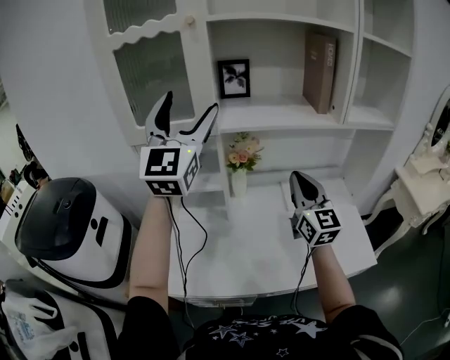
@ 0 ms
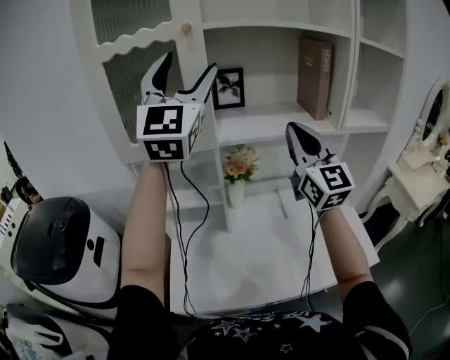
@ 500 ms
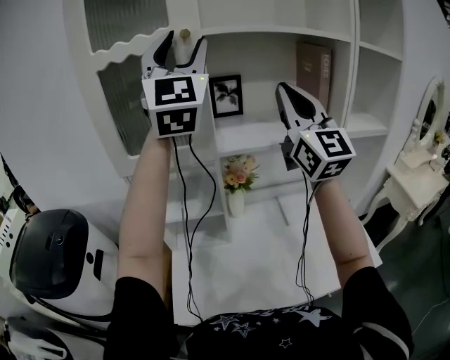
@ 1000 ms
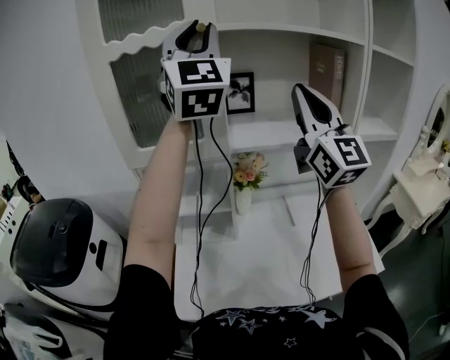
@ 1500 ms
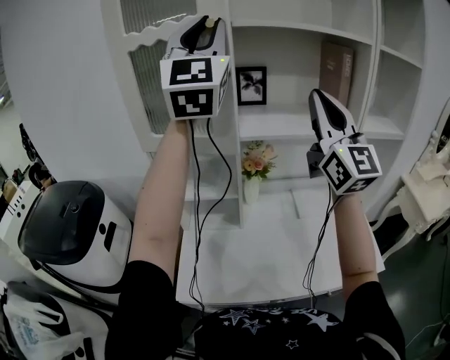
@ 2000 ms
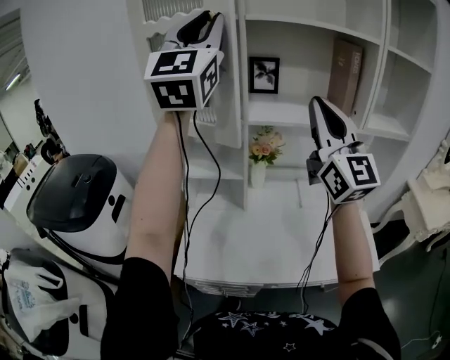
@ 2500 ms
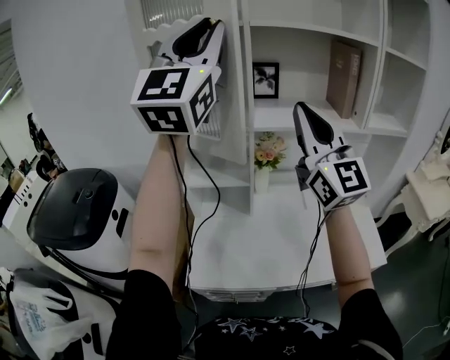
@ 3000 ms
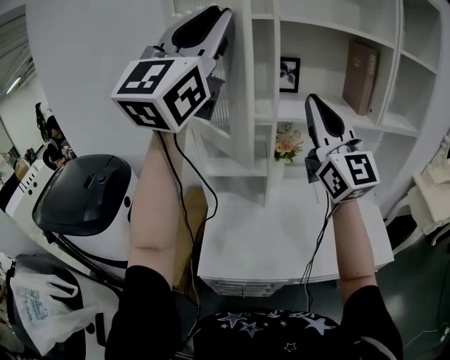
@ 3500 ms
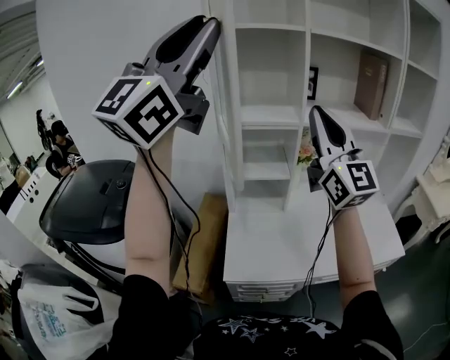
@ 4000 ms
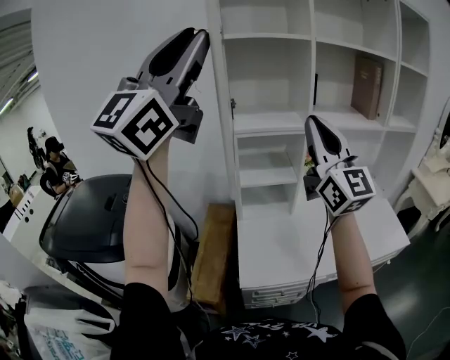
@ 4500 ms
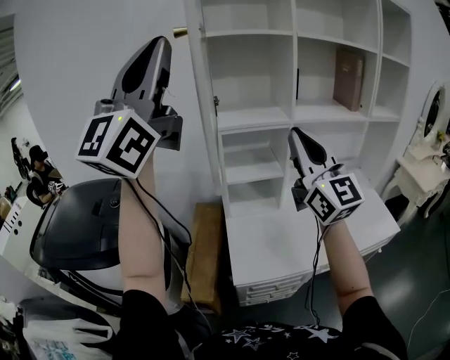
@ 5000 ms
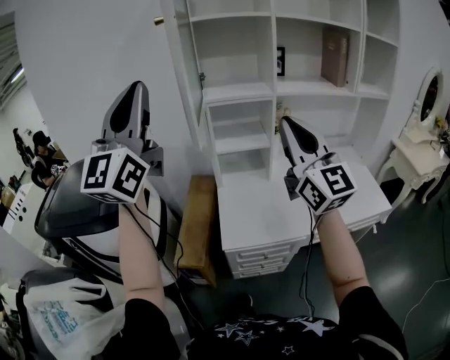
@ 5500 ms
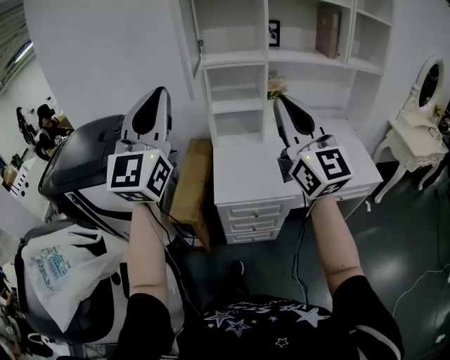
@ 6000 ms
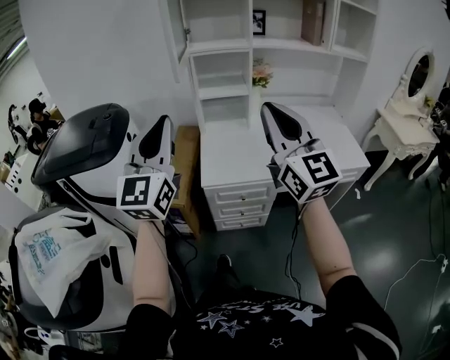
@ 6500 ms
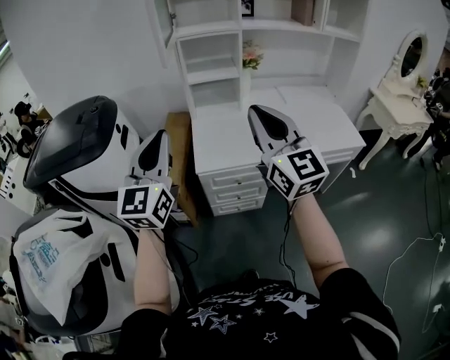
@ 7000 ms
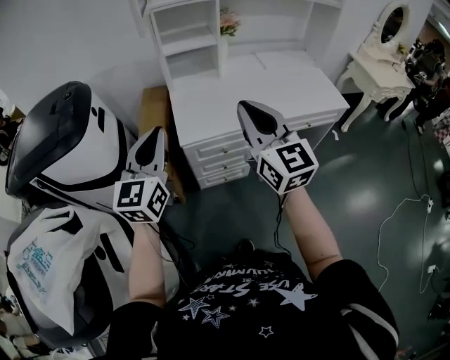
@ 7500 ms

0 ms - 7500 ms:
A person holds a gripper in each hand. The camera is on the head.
0 ms - 2000 ms: Both grippers travel together upward, approximately 20 cm. The left gripper closes its fingers. The right gripper turns by about 20 degrees.
2000 ms - 4000 ms: The left gripper goes roughly 30 cm backward and to the left, and swivels about 30 degrees. The right gripper goes approximately 25 cm to the left and backward.
4000 ms - 5500 ms: The left gripper moves downward, backward and to the left, about 20 cm; the right gripper shifts some 15 cm backward and downward.
5500 ms - 7500 ms: The left gripper moves downward and backward, roughly 35 cm, and tilts its fingers some 30 degrees downward; the right gripper heads backward and downward, covering some 25 cm.

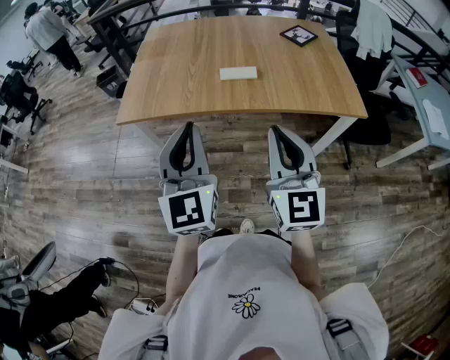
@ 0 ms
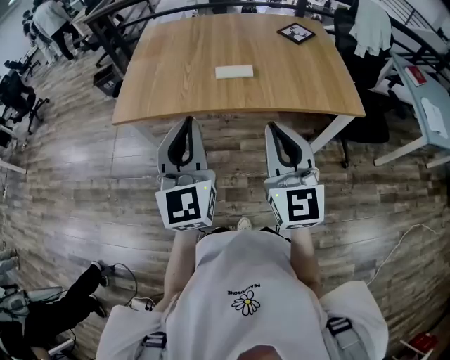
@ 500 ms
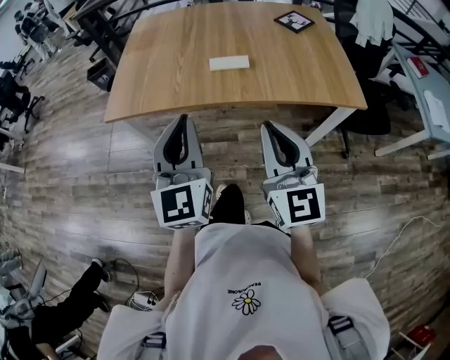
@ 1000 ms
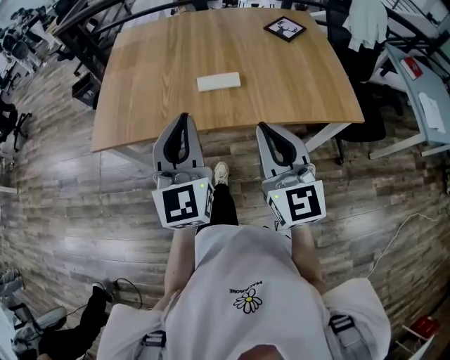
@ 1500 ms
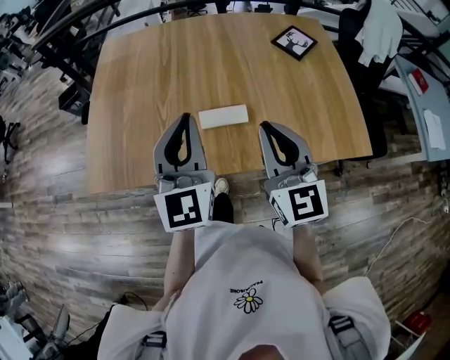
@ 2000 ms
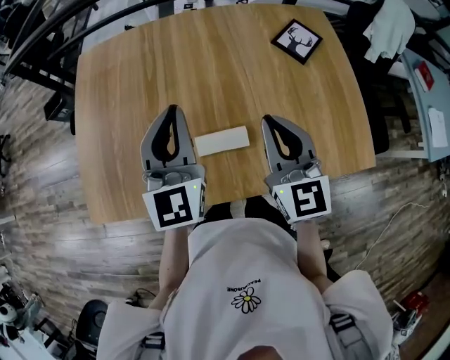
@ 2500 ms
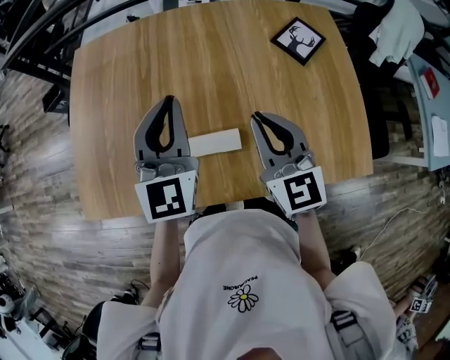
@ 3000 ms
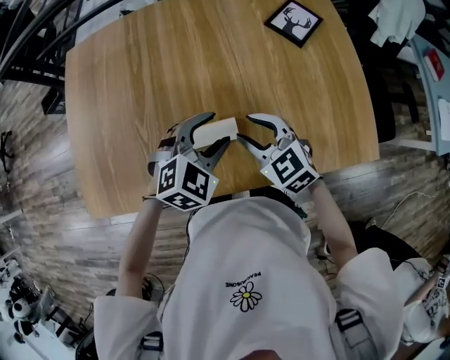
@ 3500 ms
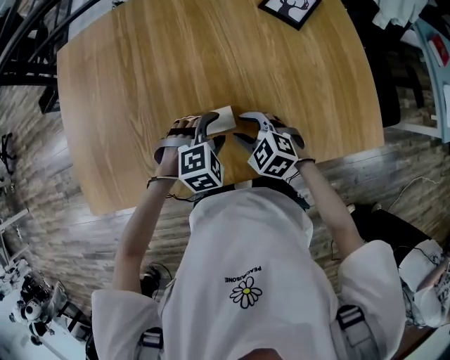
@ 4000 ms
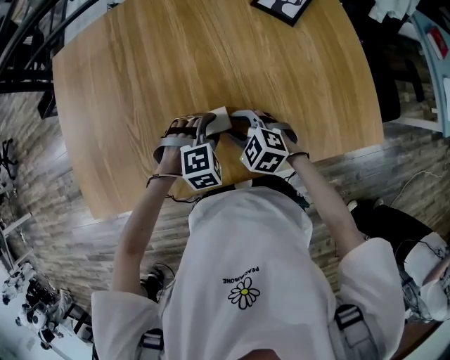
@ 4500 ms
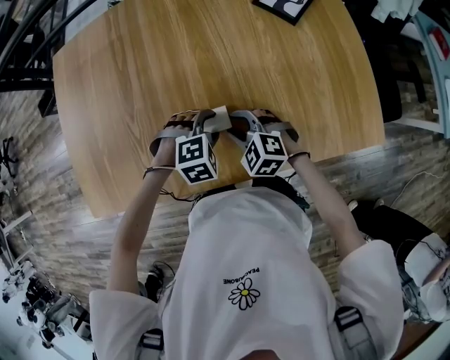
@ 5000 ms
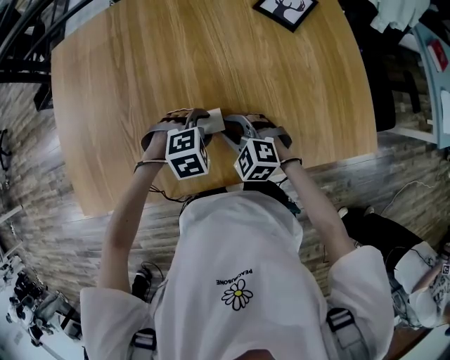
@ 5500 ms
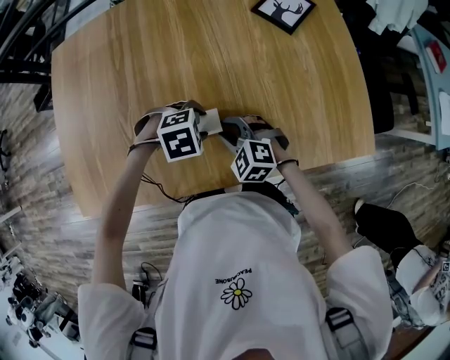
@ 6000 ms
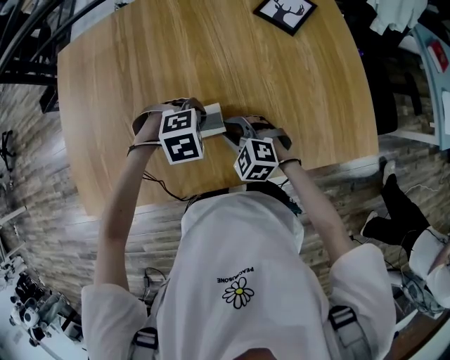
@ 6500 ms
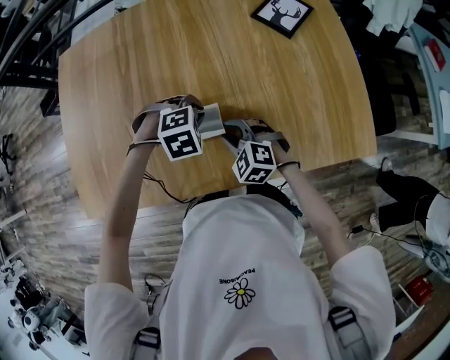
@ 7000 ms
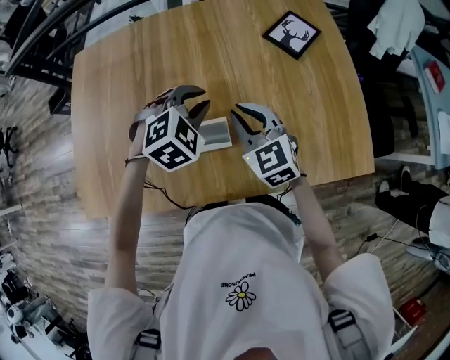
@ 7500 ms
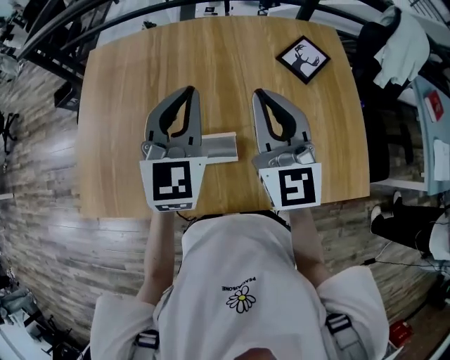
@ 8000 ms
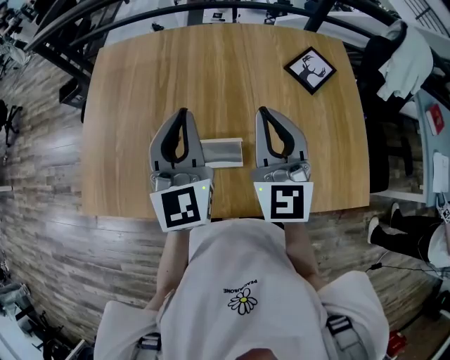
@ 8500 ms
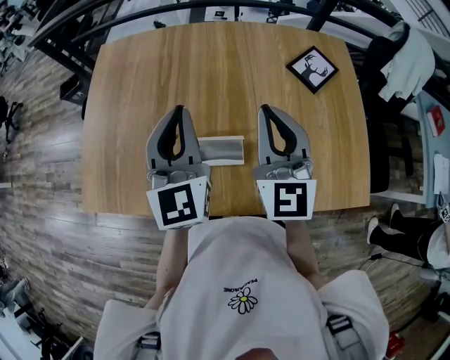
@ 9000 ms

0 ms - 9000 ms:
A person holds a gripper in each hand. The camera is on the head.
0 ms - 2000 ms: The two grippers go roughly 30 cm forward.
2000 ms - 4500 ms: The left gripper is displaced downward and to the right by some 35 cm, tilts its fingers some 70 degrees downward, and opens. Meanwhile the right gripper travels downward by about 30 cm, angles its fingers downward, by about 50 degrees, and opens.
4500 ms - 7000 ms: The left gripper changes place by about 5 cm, and closes up.
7000 ms - 9000 ms: The two grippers go about 30 cm upward. The left gripper angles its fingers upward, by some 70 degrees. The right gripper angles its fingers upward, by roughly 50 degrees, and closes its fingers.

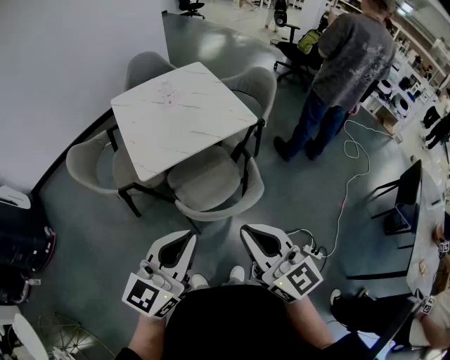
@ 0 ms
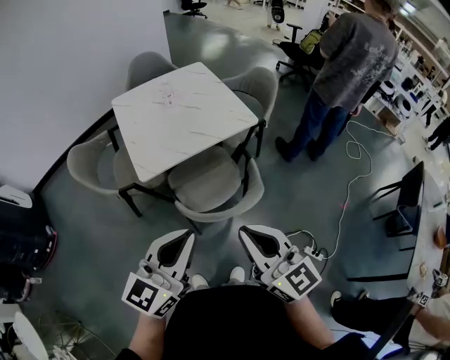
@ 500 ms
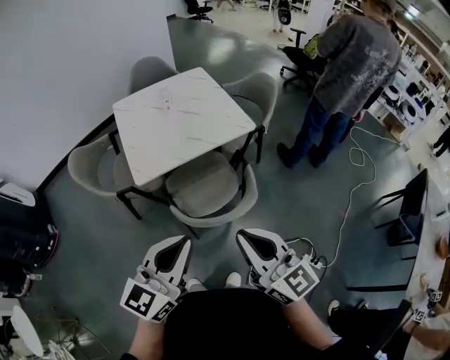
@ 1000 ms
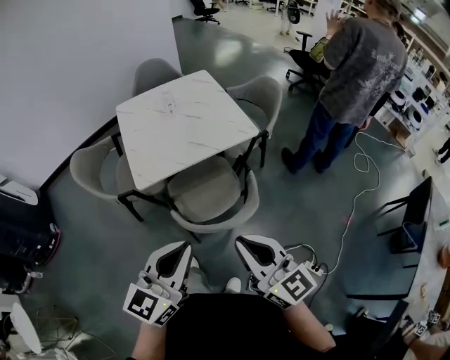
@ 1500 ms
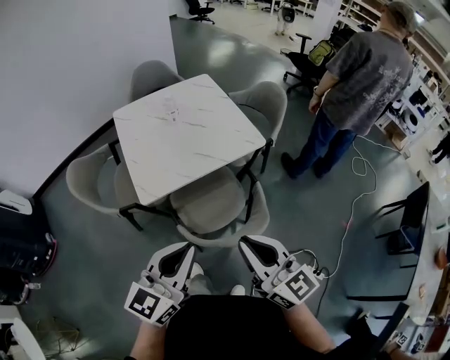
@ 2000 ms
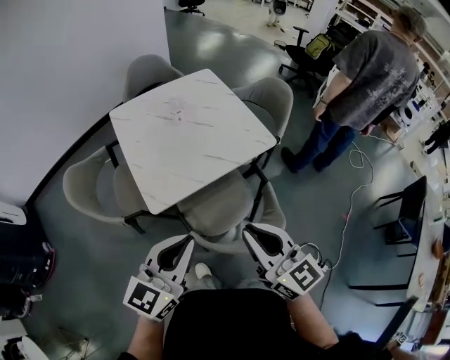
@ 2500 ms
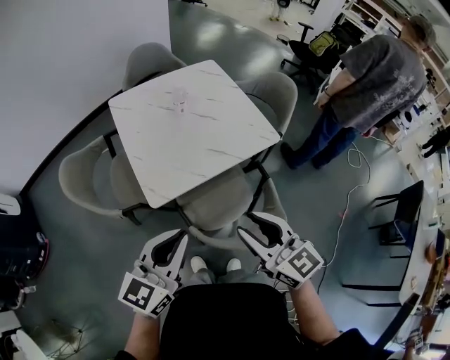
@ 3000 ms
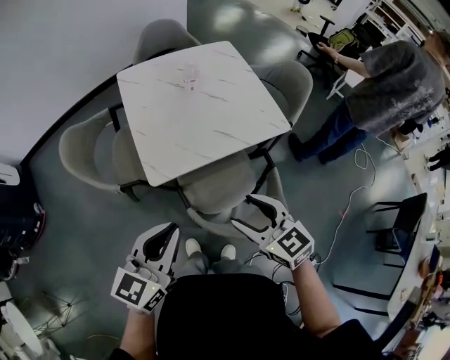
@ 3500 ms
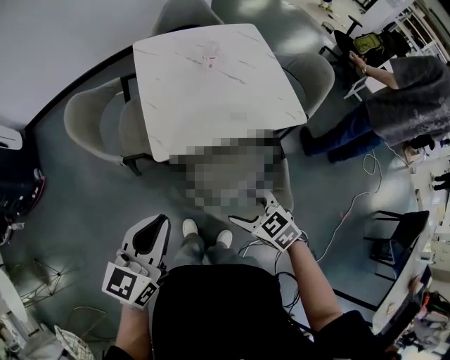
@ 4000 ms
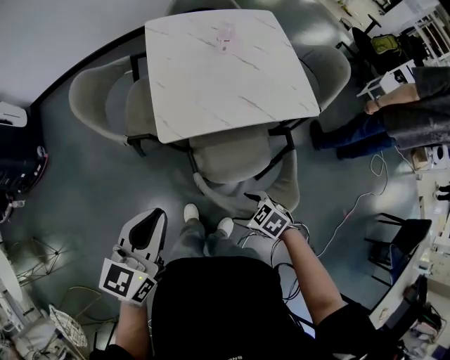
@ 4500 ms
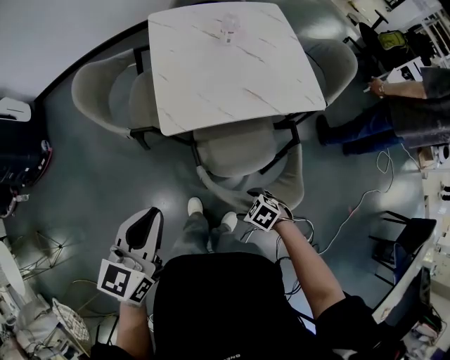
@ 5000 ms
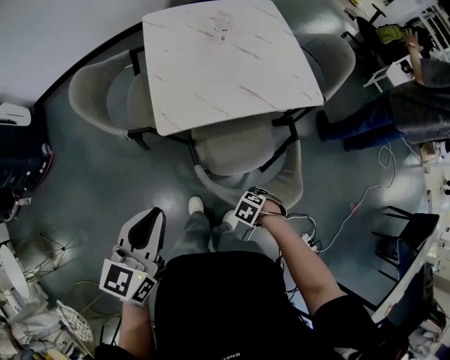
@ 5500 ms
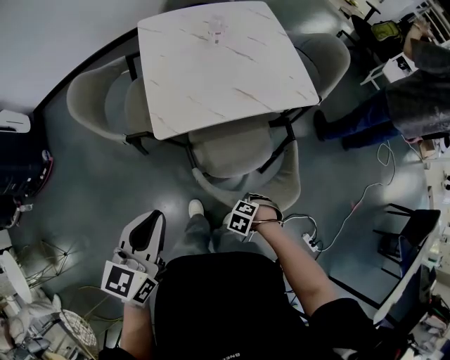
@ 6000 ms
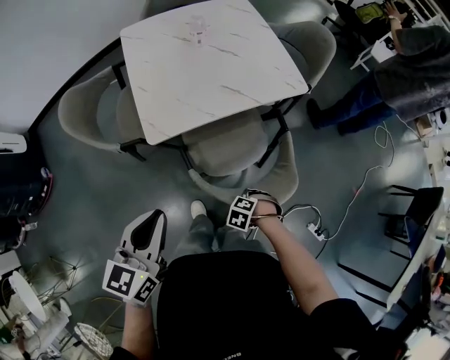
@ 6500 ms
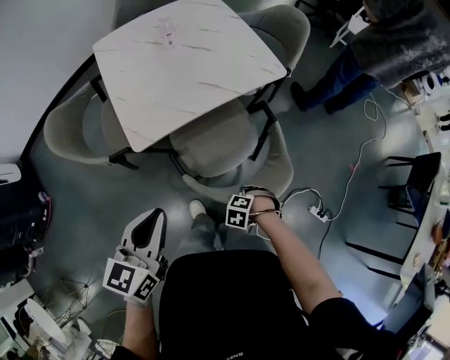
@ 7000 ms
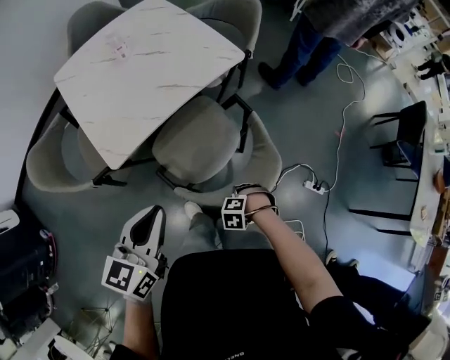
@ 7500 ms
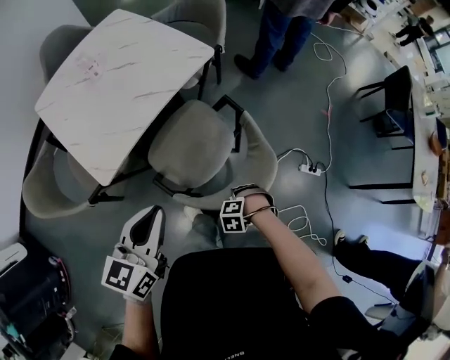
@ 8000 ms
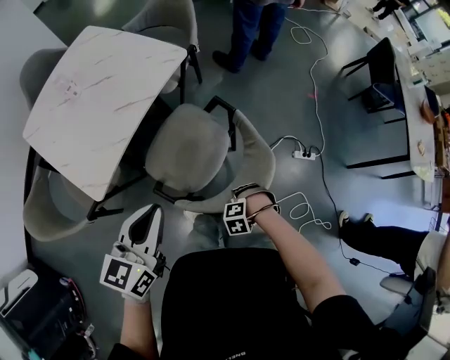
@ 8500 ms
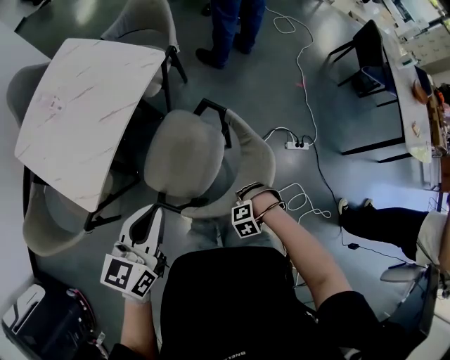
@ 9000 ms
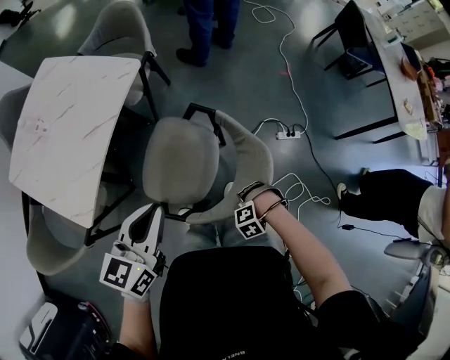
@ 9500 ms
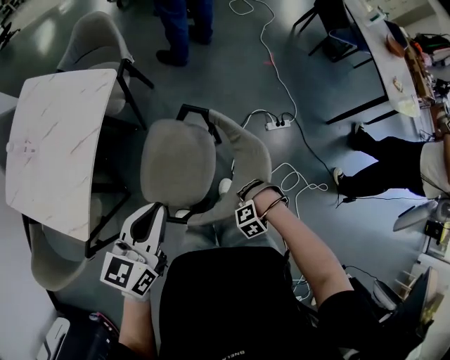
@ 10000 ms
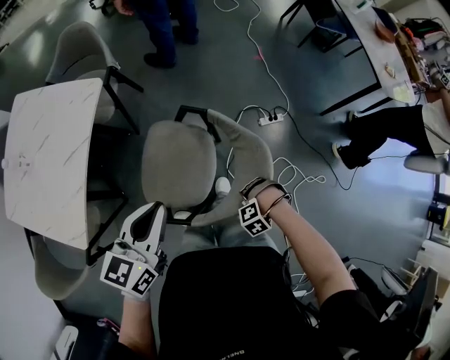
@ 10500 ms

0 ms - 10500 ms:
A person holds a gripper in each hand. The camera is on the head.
0 ms - 2000 ms: Both grippers move forward, approximately 10 cm.
2000 ms - 4000 ms: The left gripper ends up about 20 cm from where it was, and rotates approximately 20 degrees, while the right gripper travels downward by some 25 cm, tilts its fingers some 50 degrees downward, and opens its fingers.
4000 ms - 6500 ms: The right gripper is displaced downward by approximately 20 cm, tips its fingers downward by approximately 40 degrees, and closes.
6500 ms - 8500 ms: The left gripper ends up some 15 cm from where it was, and changes its angle by about 40 degrees, while the right gripper shifts by approximately 15 cm.
8500 ms - 10500 ms: The right gripper ends up roughly 15 cm from where it was, while the left gripper shifts by roughly 15 cm, and swivels approximately 20 degrees.
